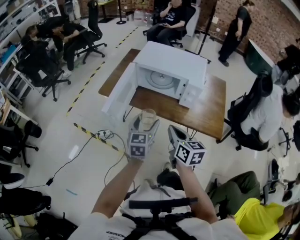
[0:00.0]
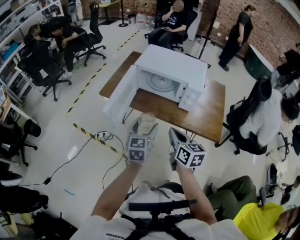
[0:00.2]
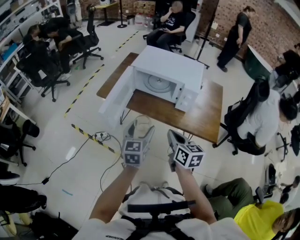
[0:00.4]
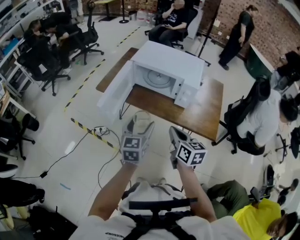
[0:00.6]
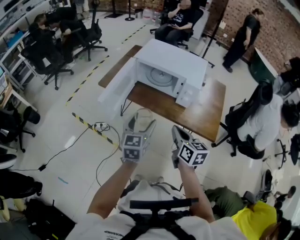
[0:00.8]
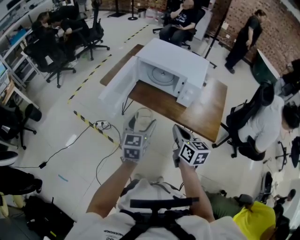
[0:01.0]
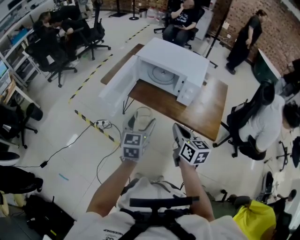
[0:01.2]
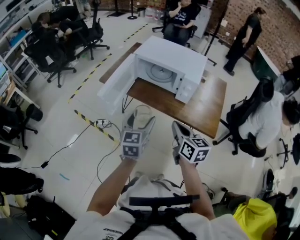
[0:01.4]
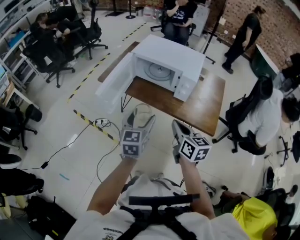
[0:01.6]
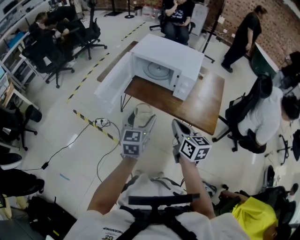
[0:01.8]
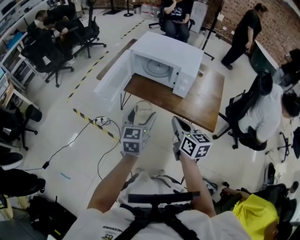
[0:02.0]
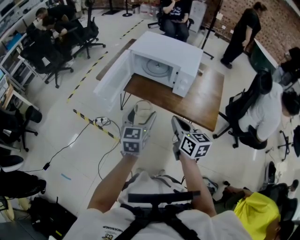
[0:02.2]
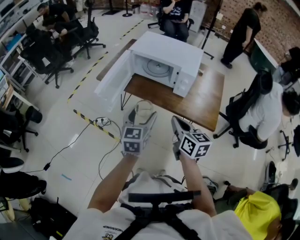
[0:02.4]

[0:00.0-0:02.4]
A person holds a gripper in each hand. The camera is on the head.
0:00.0 to 0:01.2: The left gripper goes approximately 5 cm backward; the right gripper heads to the right, covering approximately 5 cm.
0:01.2 to 0:02.4: The grippers move only a little.

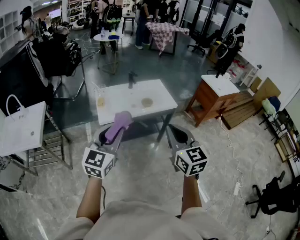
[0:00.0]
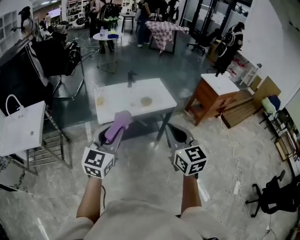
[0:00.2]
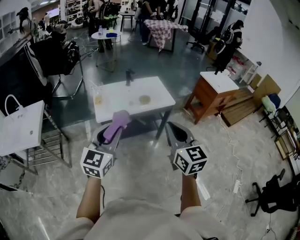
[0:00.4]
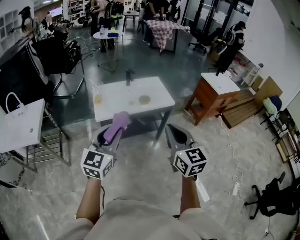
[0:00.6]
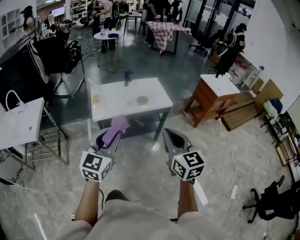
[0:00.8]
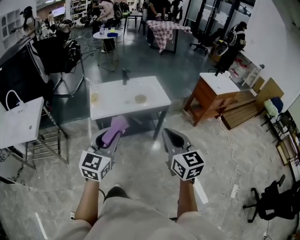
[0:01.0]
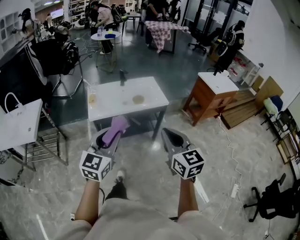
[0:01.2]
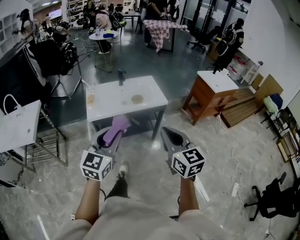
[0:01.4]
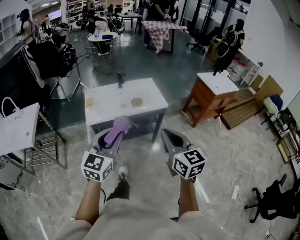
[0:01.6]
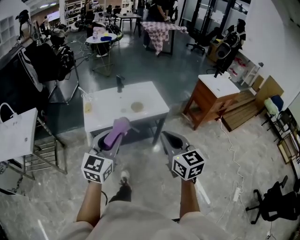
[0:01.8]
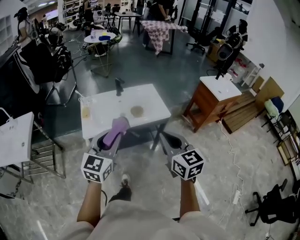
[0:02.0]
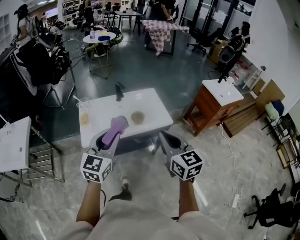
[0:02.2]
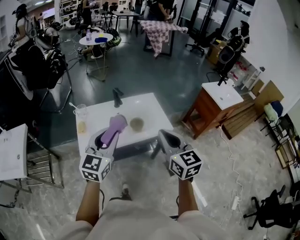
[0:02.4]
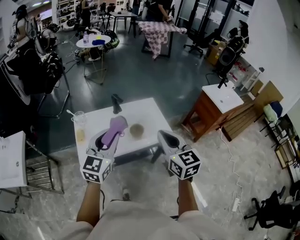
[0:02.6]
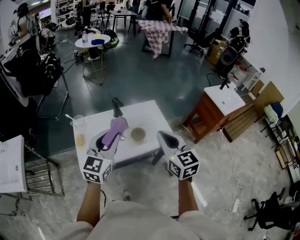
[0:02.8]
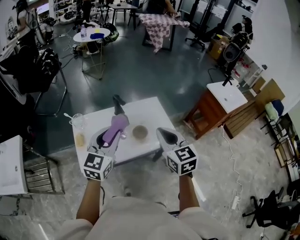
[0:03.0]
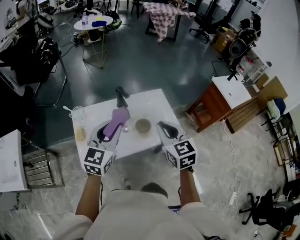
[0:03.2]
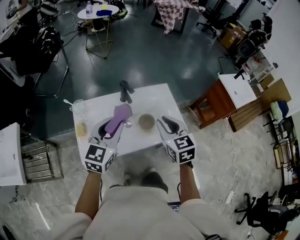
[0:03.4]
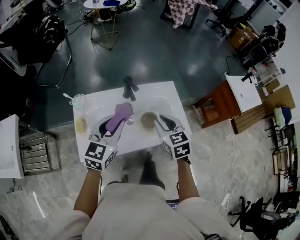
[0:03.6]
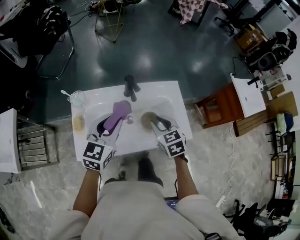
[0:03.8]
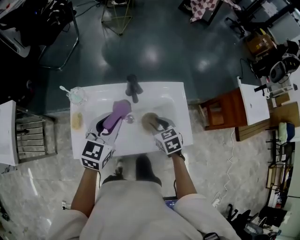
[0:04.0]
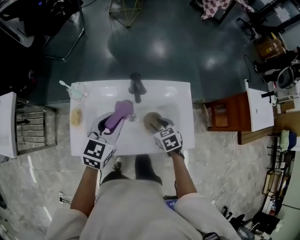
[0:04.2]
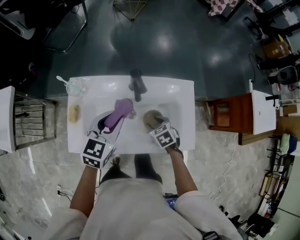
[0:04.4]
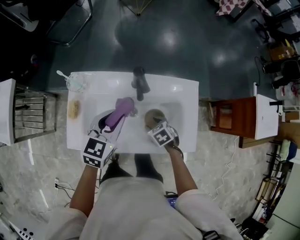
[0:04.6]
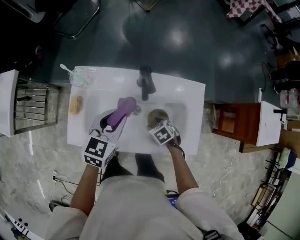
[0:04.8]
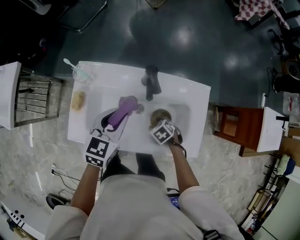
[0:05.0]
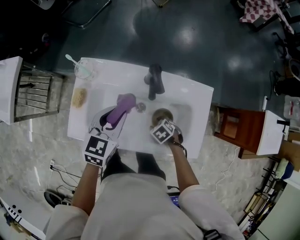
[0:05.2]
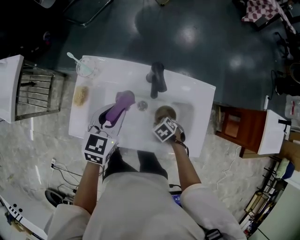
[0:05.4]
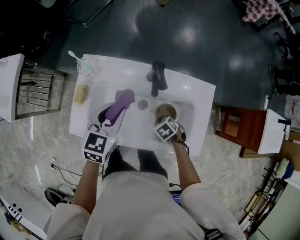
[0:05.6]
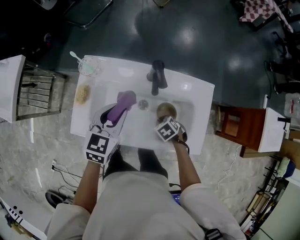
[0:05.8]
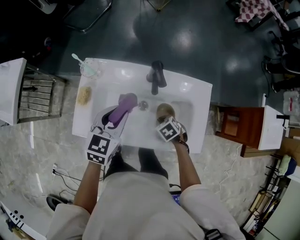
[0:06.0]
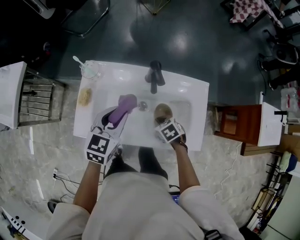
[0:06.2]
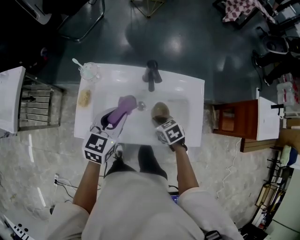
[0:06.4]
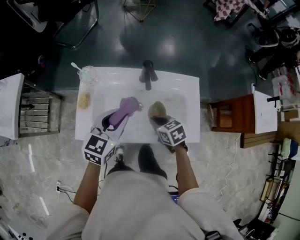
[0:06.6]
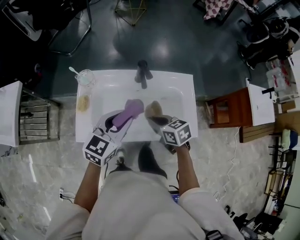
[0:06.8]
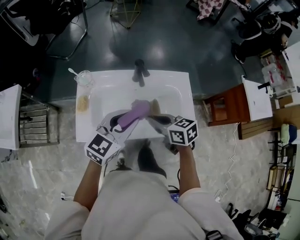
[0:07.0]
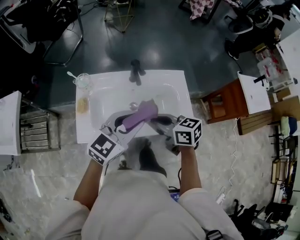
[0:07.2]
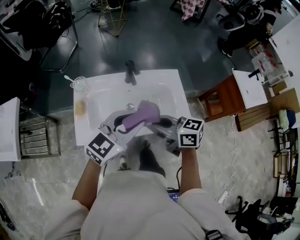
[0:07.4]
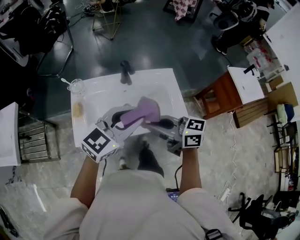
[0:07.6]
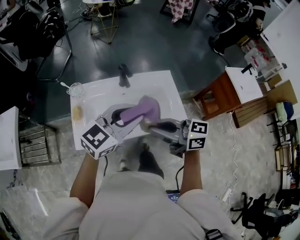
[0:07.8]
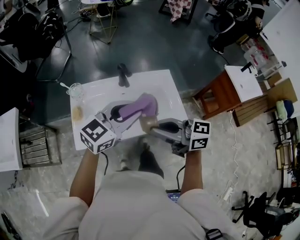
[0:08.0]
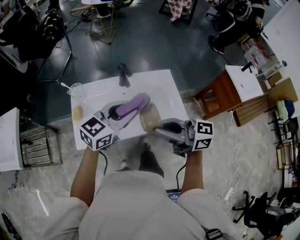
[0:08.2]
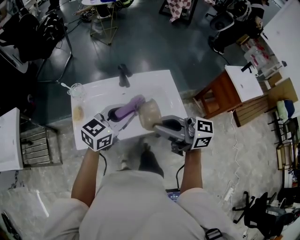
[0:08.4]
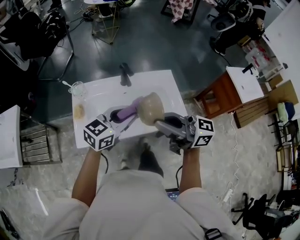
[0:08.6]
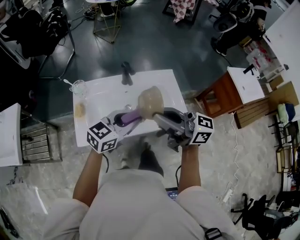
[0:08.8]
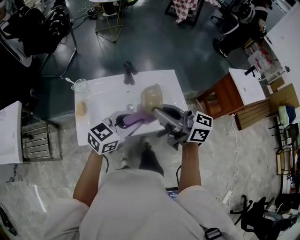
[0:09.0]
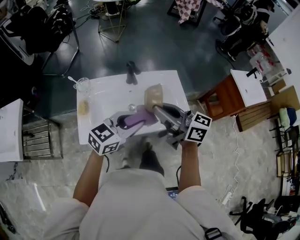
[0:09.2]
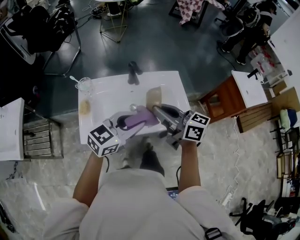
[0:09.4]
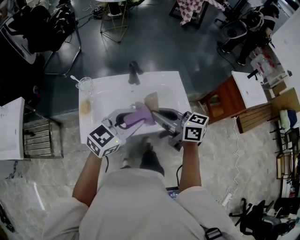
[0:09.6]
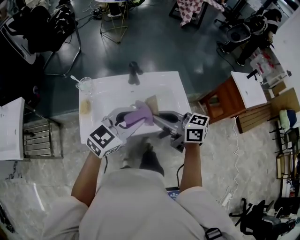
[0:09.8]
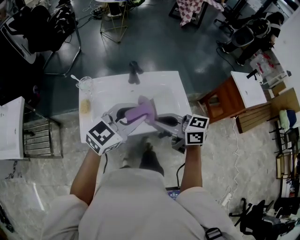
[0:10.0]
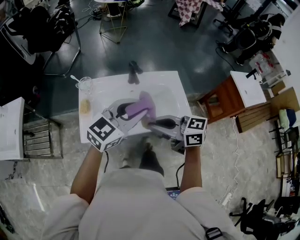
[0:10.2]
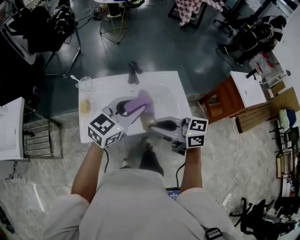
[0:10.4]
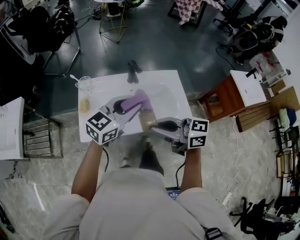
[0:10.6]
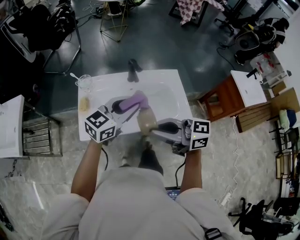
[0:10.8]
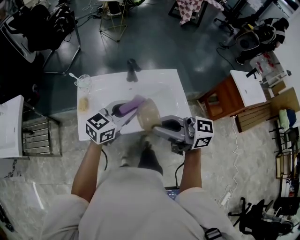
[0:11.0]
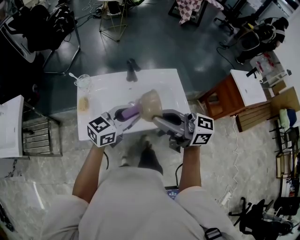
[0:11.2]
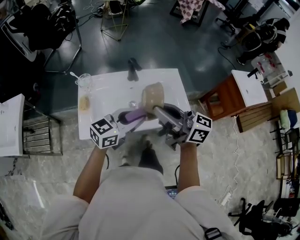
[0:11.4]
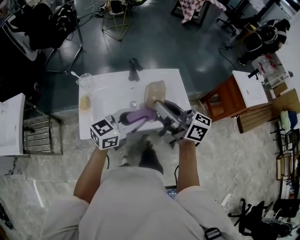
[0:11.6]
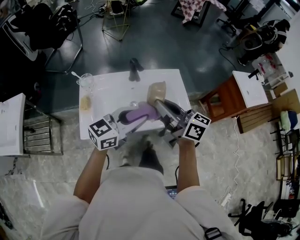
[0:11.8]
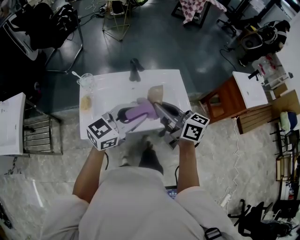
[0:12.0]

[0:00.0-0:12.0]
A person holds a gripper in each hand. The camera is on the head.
0:00.0 to 0:01.6: The grippers both shift to the right by roughly 15 cm.
0:01.6 to 0:03.0: The two grippers travel together, forward, approximately 50 cm.
0:03.0 to 0:04.4: The left gripper heads forward and downward, covering roughly 30 cm, and swivels approximately 30 degrees, while the right gripper travels downward and forward by about 50 cm, tilts its fingers some 40 degrees downward, and opens its fingers.
0:04.4 to 0:06.0: The right gripper travels downward by approximately 5 cm, and closes its fingers.
0:06.0 to 0:07.6: The left gripper ends up some 30 cm from where it was, and swivels roughly 50 degrees. The right gripper heads upward, covering approximately 35 cm, and tilts its fingers about 70 degrees upward.
0:07.6 to 0:09.0: The left gripper goes roughly 5 cm downward, while the right gripper heads upward, covering approximately 5 cm.
0:09.0 to 0:10.4: The left gripper shifts approximately 5 cm upward. Meanwhile the right gripper shifts by approximately 10 cm, and turns by some 20 degrees.
0:10.4 to 0:12.0: The right gripper changes place by roughly 10 cm, and rotates roughly 30 degrees.

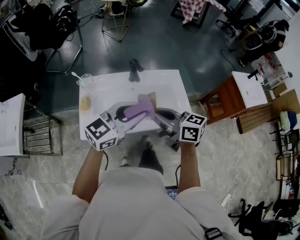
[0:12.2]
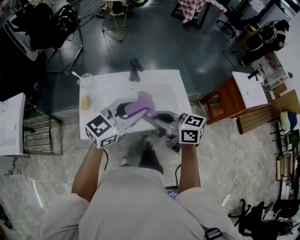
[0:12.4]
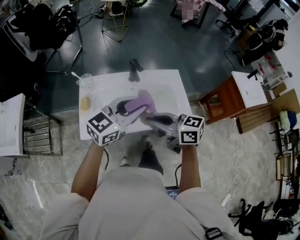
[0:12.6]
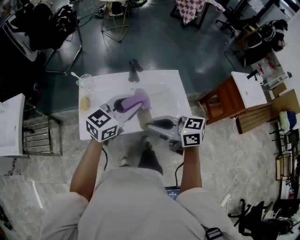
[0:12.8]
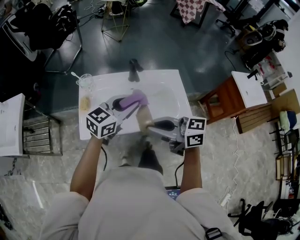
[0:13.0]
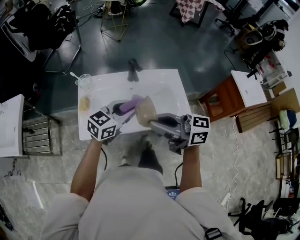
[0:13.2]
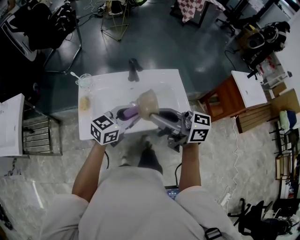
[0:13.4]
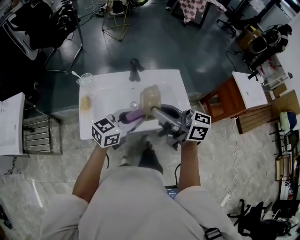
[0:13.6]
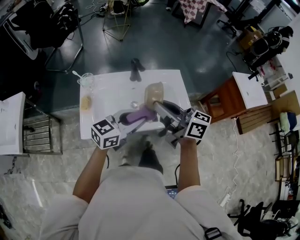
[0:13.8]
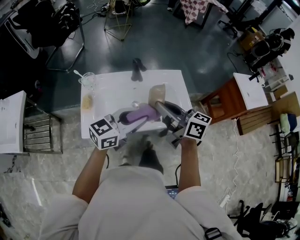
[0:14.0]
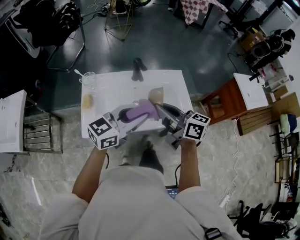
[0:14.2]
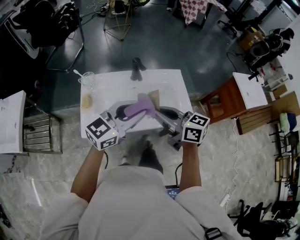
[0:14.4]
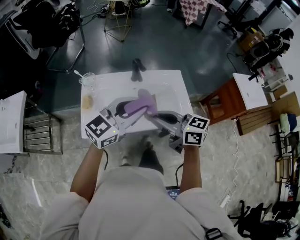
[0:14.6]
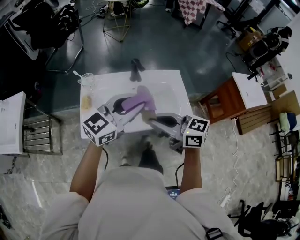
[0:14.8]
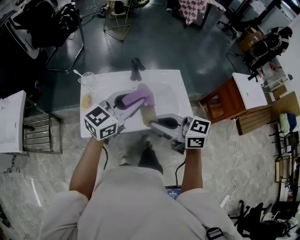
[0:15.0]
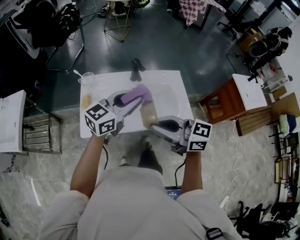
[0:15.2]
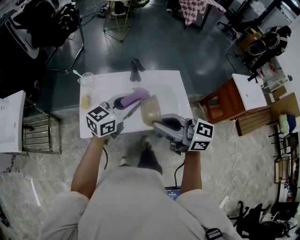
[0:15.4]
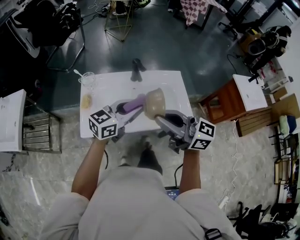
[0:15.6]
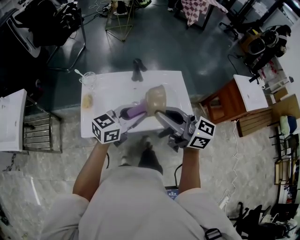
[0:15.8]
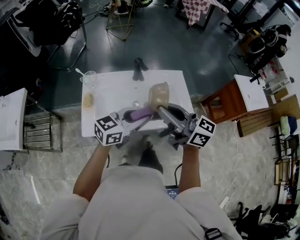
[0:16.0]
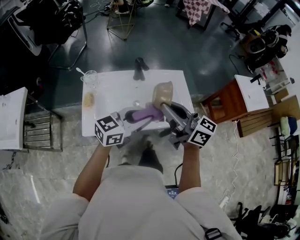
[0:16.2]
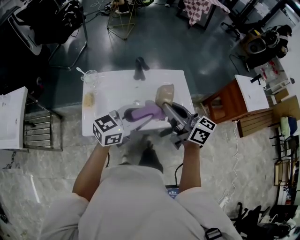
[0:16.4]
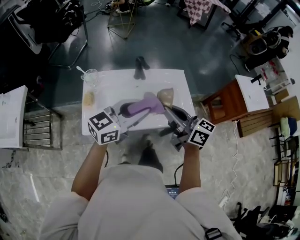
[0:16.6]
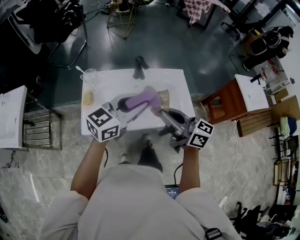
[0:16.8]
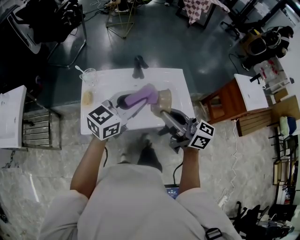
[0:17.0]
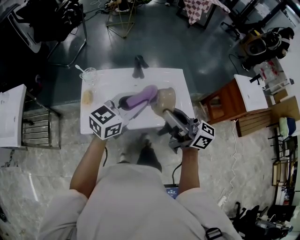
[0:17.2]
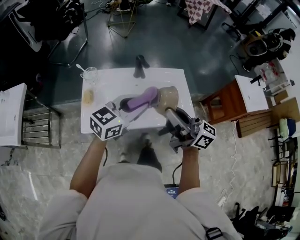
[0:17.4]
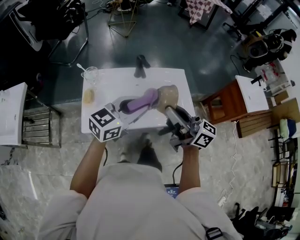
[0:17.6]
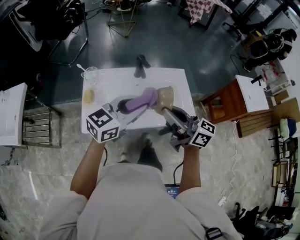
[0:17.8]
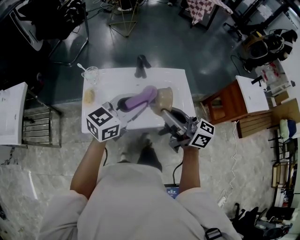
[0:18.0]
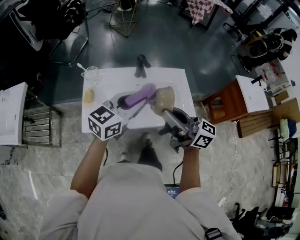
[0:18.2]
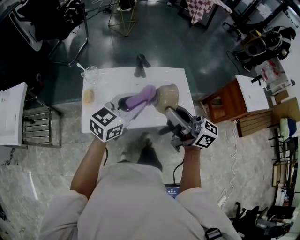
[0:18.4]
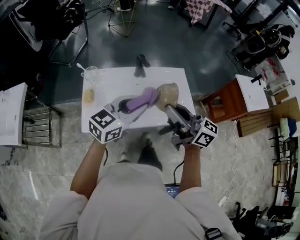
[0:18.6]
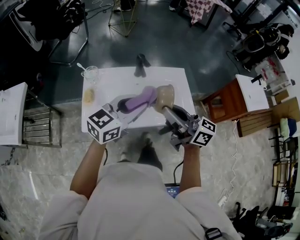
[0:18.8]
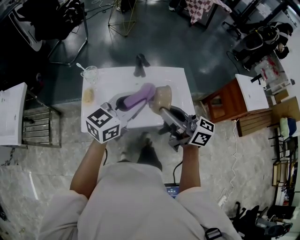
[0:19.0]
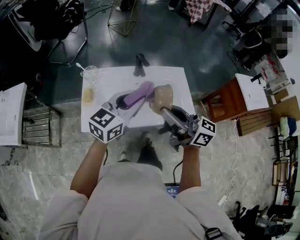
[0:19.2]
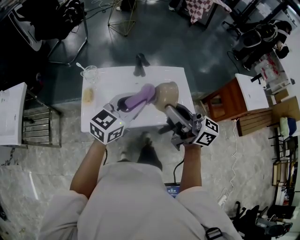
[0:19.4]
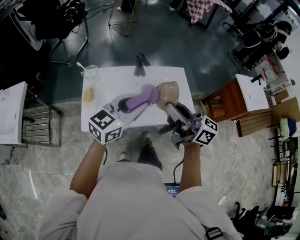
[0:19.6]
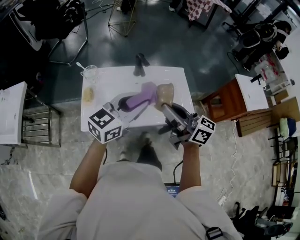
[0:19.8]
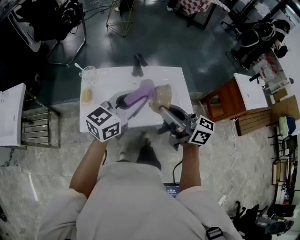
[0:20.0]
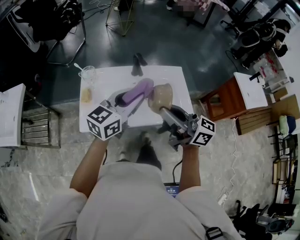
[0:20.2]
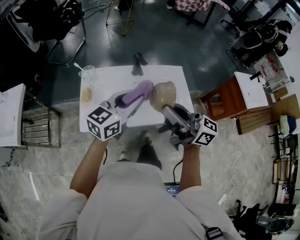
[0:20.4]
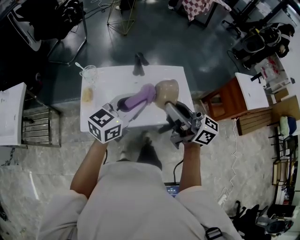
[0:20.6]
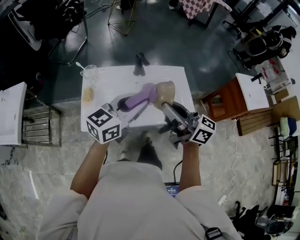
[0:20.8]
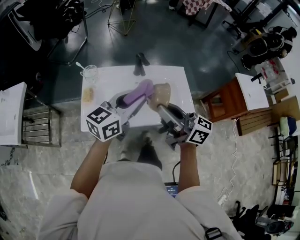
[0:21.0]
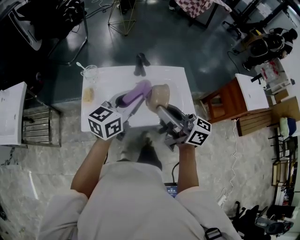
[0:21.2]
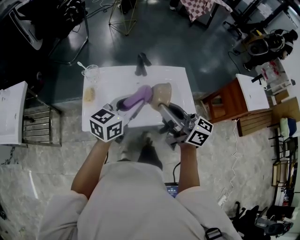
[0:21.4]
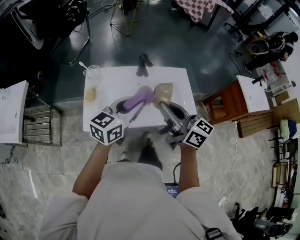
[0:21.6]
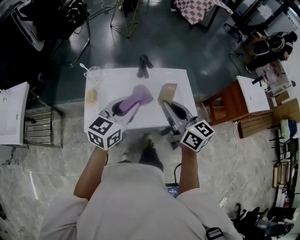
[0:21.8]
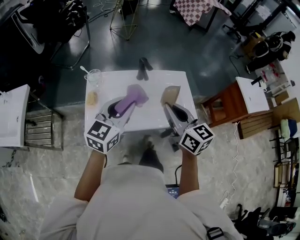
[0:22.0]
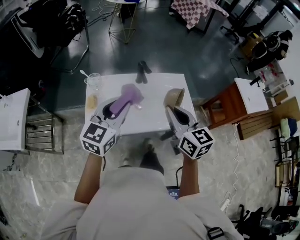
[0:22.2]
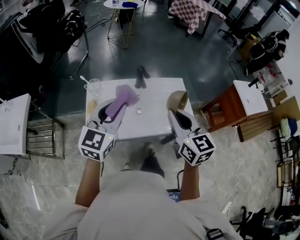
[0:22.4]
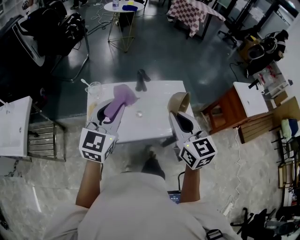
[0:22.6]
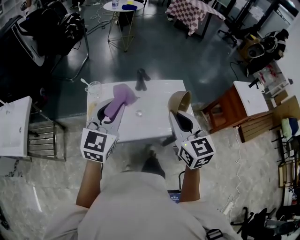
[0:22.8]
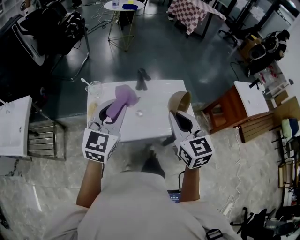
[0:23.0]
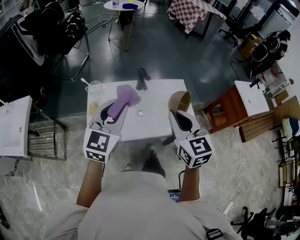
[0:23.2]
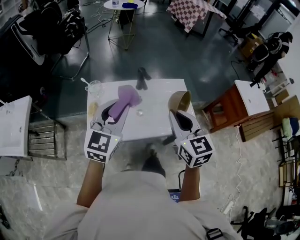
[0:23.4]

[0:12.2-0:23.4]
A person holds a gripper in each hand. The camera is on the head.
0:12.2 to 0:13.8: The left gripper heads downward, covering approximately 5 cm.
0:13.8 to 0:15.4: The left gripper moves about 5 cm, while the right gripper shifts by some 10 cm, and changes its angle by approximately 20 degrees.
0:17.0 to 0:20.2: The grippers move only a little.
0:20.2 to 0:21.8: The right gripper rotates approximately 30 degrees.
0:21.8 to 0:23.4: The left gripper goes some 5 cm upward, and turns by some 20 degrees. Meanwhile the right gripper changes its angle by roughly 30 degrees.
